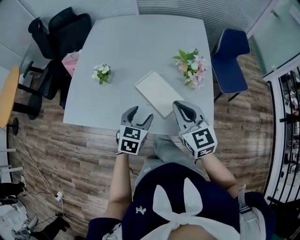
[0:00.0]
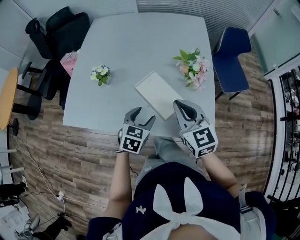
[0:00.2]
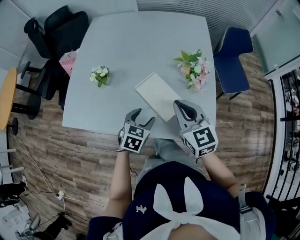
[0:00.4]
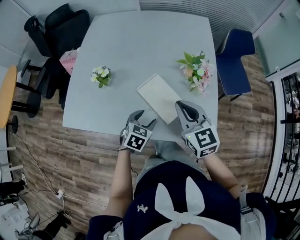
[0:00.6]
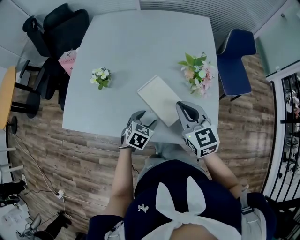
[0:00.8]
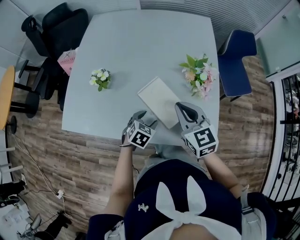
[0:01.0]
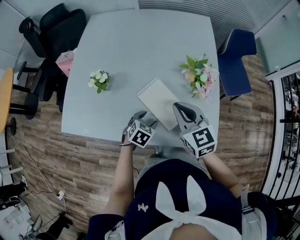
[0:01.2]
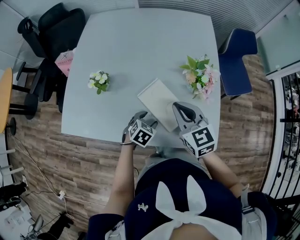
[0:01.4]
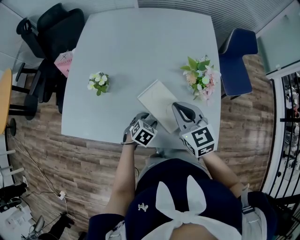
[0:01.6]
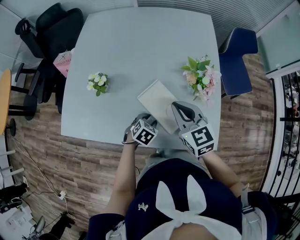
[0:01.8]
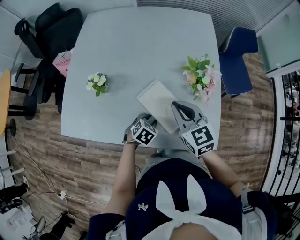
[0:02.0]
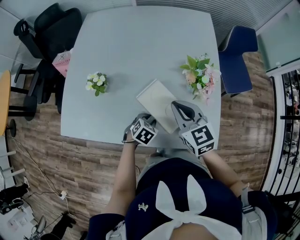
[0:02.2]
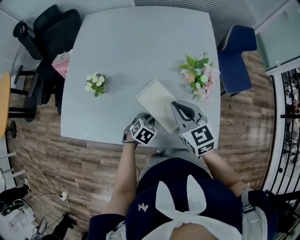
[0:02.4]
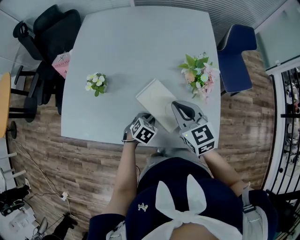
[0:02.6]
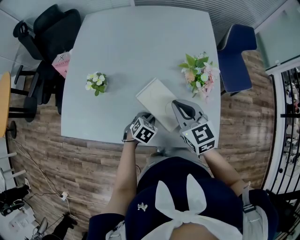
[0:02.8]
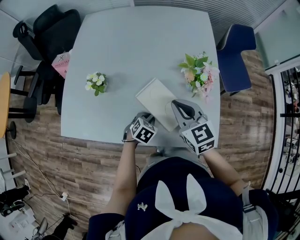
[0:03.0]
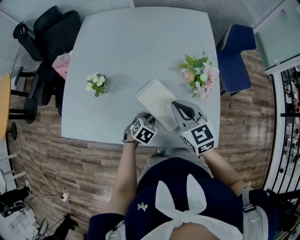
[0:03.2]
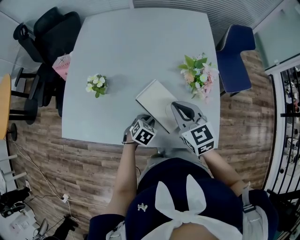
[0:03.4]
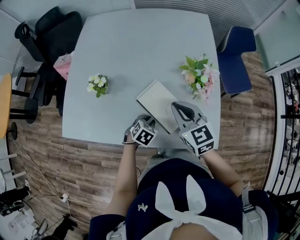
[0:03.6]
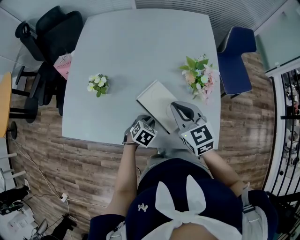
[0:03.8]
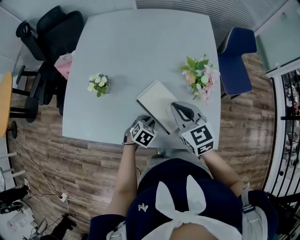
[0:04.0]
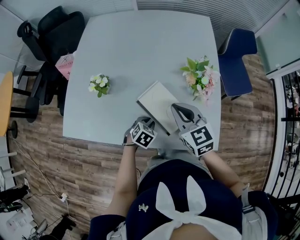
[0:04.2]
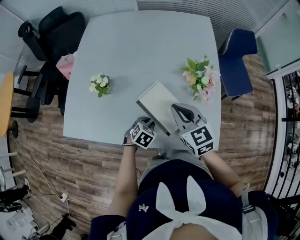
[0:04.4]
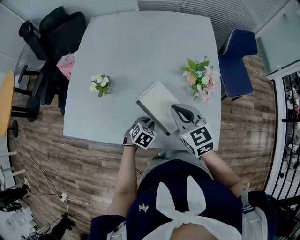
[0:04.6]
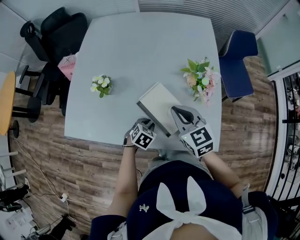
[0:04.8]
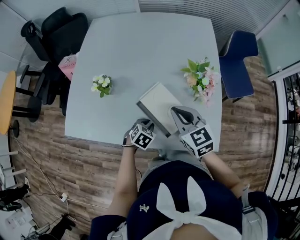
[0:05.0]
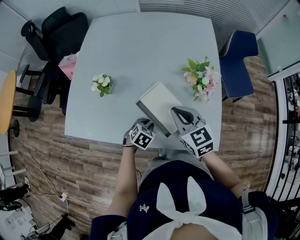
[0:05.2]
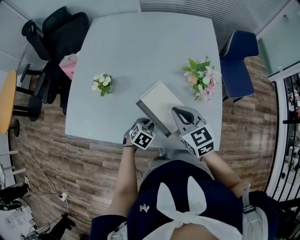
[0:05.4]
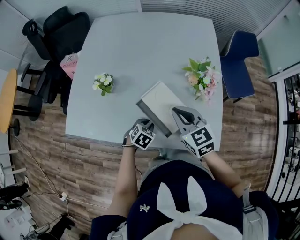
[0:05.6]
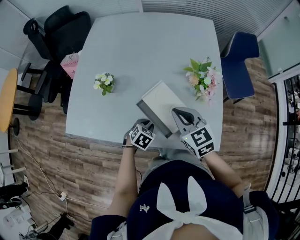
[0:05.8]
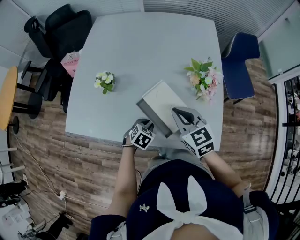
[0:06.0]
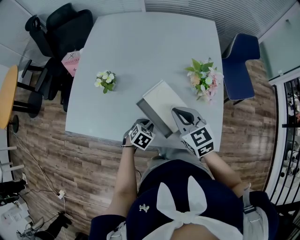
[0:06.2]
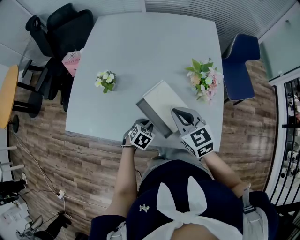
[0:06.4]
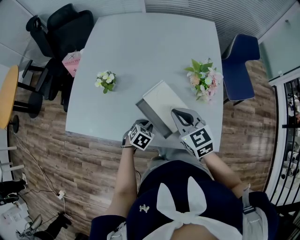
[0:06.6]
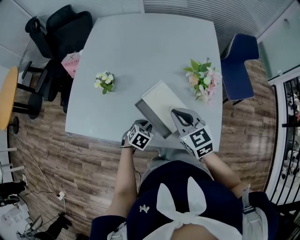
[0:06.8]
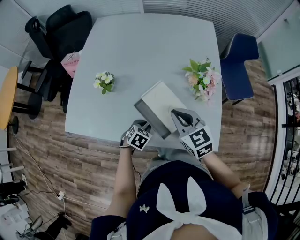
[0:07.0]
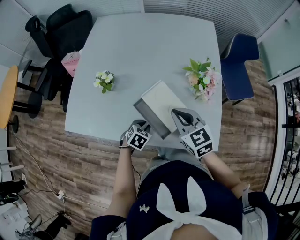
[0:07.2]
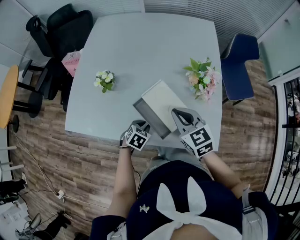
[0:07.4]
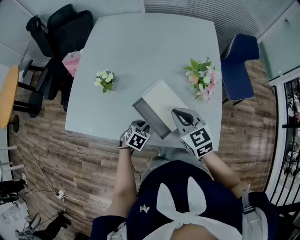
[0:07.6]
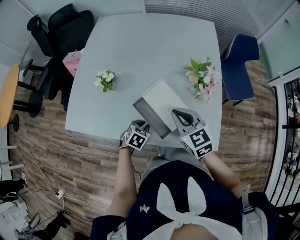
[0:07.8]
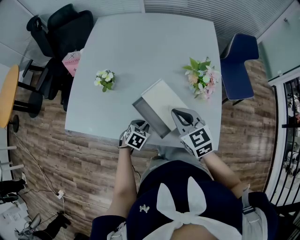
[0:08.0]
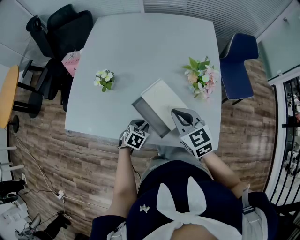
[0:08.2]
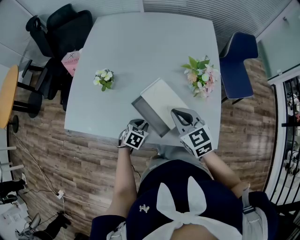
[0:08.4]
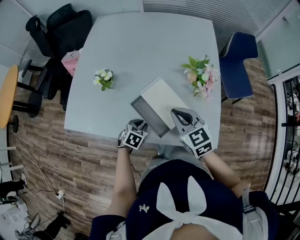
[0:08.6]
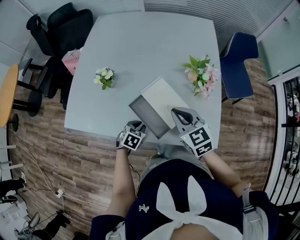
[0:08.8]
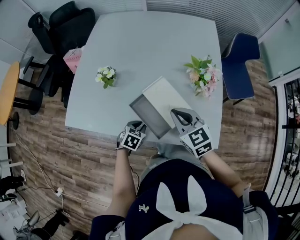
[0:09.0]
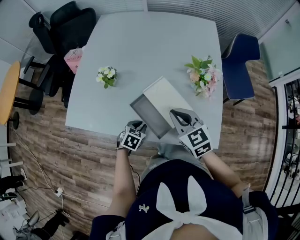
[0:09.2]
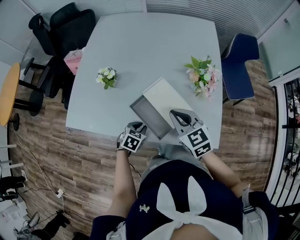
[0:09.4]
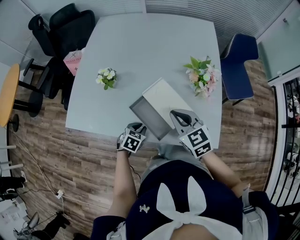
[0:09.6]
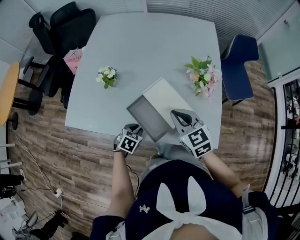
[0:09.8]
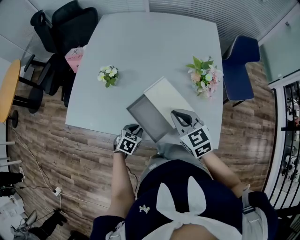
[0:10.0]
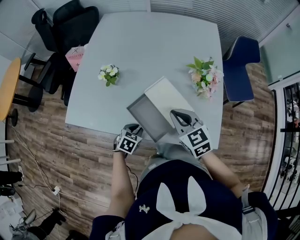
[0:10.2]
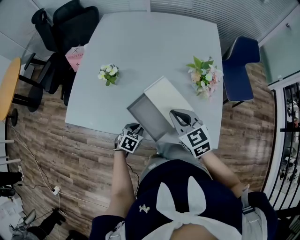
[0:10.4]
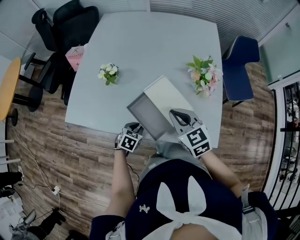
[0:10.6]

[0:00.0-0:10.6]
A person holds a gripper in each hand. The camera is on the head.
0:00.0 to 0:01.6: The right gripper is displaced forward and downward by about 10 cm; the left gripper is displaced downward and forward by approximately 15 cm, and rotates about 30 degrees.
0:01.6 to 0:03.0: The left gripper closes.
0:03.0 to 0:06.0: There are only small adjustments of the grippers.
0:06.0 to 0:09.0: The grippers move only a little.
0:09.0 to 0:10.6: The grippers move only a little.

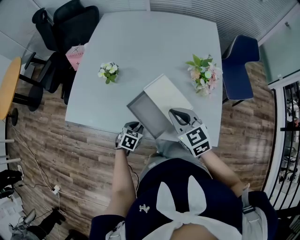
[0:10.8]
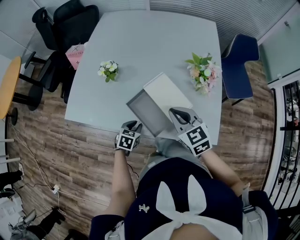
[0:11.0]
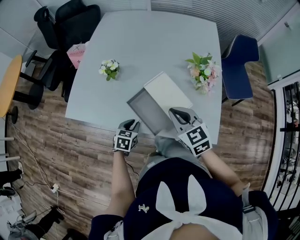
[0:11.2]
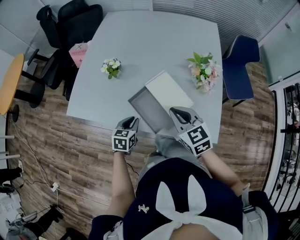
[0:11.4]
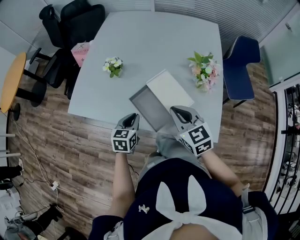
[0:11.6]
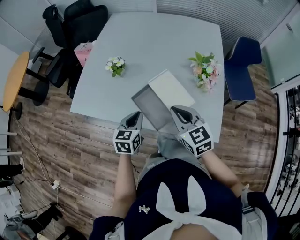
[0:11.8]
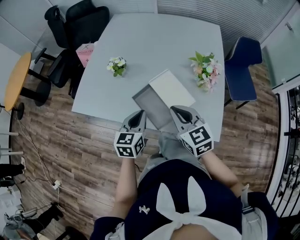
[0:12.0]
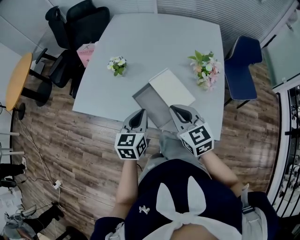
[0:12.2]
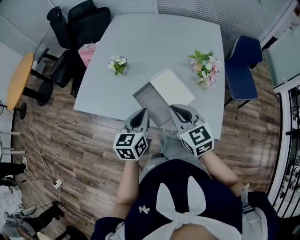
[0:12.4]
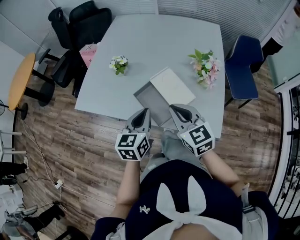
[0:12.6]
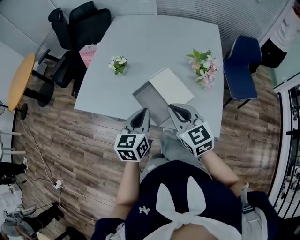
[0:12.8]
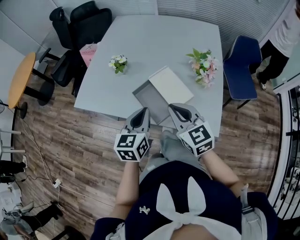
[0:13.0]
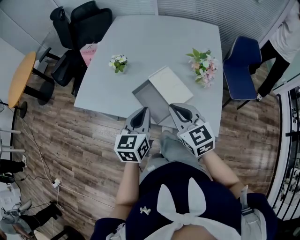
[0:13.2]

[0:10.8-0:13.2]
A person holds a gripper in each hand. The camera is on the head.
0:10.8 to 0:12.0: The right gripper changes place by roughly 5 cm. Meanwhile the left gripper travels upward by some 20 cm, and points its fingers about 30 degrees further upward.
0:12.0 to 0:13.2: The left gripper is displaced upward and backward by about 10 cm. The right gripper moves about 5 cm.

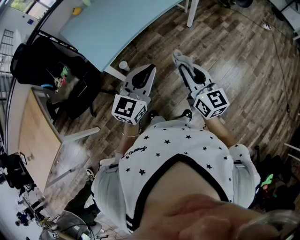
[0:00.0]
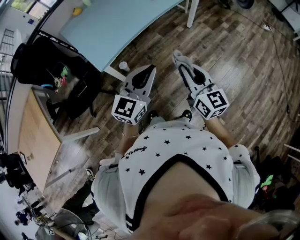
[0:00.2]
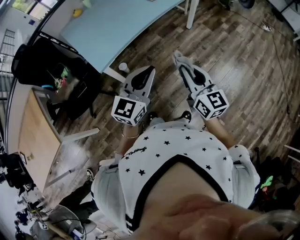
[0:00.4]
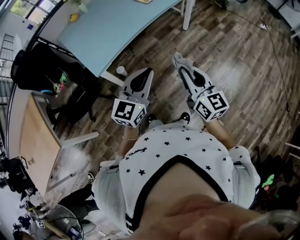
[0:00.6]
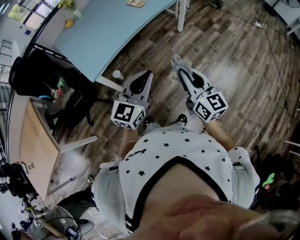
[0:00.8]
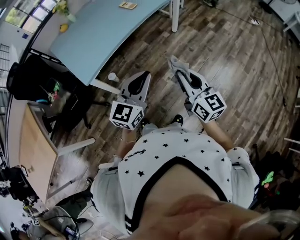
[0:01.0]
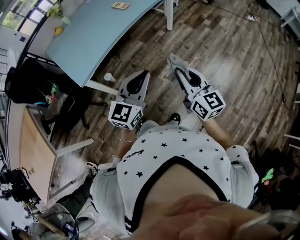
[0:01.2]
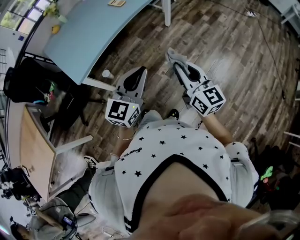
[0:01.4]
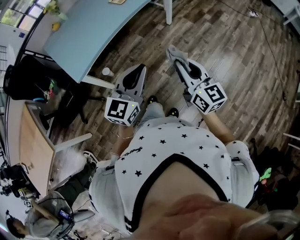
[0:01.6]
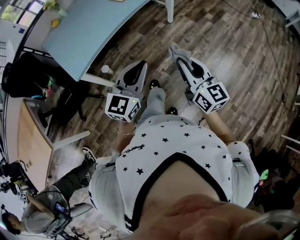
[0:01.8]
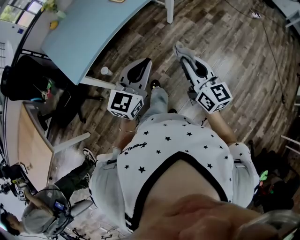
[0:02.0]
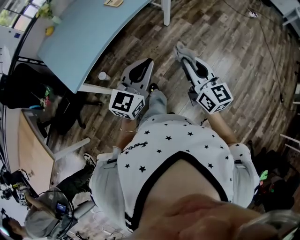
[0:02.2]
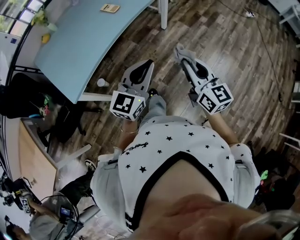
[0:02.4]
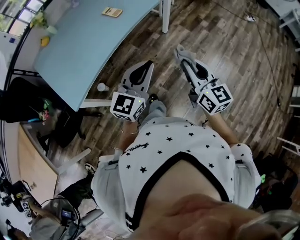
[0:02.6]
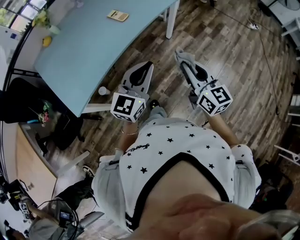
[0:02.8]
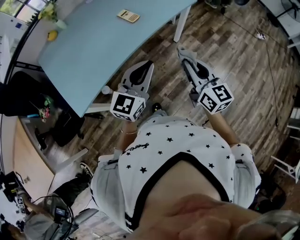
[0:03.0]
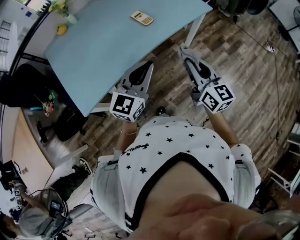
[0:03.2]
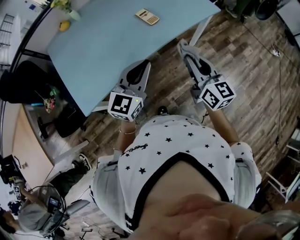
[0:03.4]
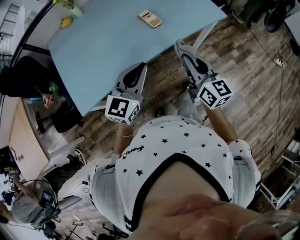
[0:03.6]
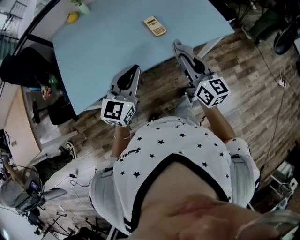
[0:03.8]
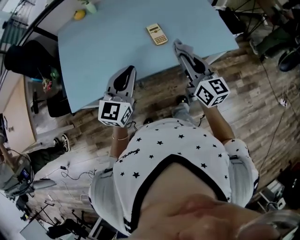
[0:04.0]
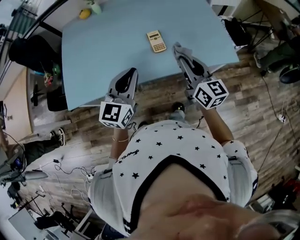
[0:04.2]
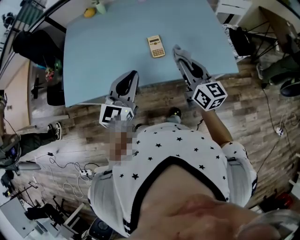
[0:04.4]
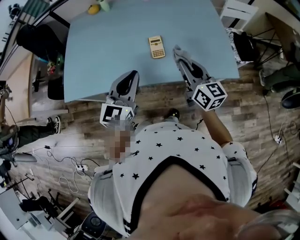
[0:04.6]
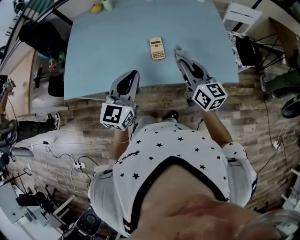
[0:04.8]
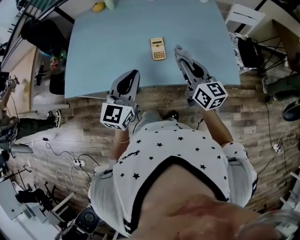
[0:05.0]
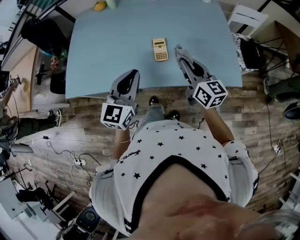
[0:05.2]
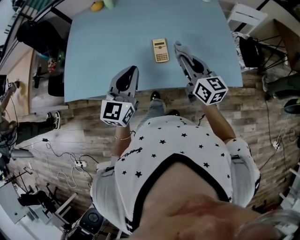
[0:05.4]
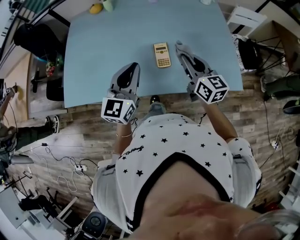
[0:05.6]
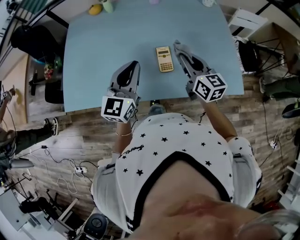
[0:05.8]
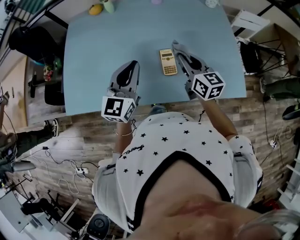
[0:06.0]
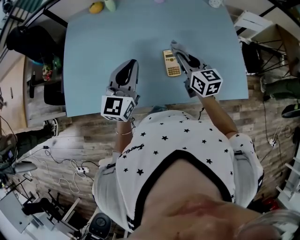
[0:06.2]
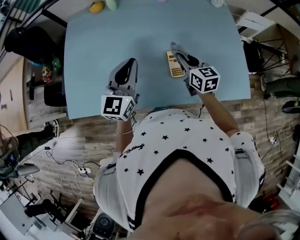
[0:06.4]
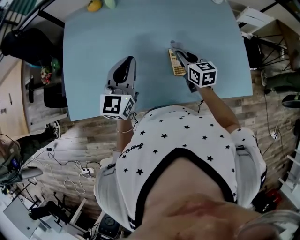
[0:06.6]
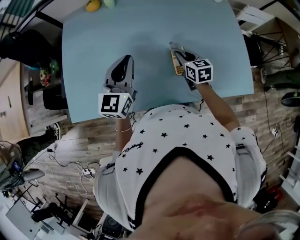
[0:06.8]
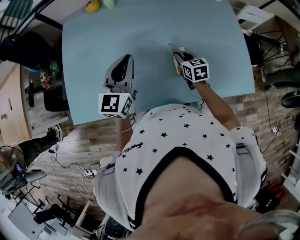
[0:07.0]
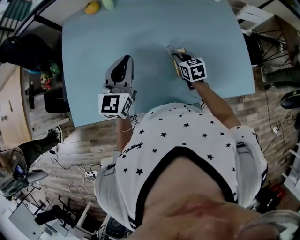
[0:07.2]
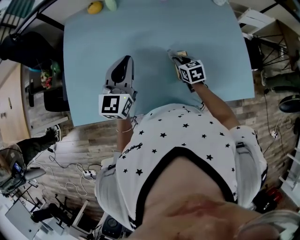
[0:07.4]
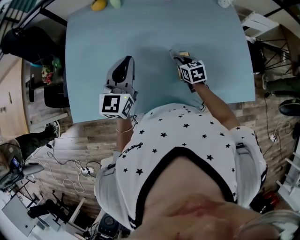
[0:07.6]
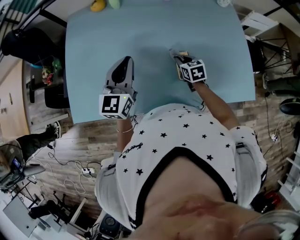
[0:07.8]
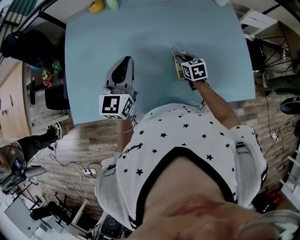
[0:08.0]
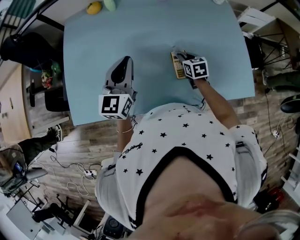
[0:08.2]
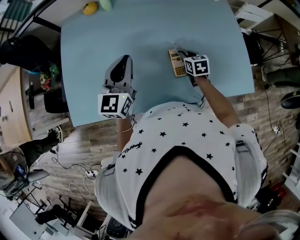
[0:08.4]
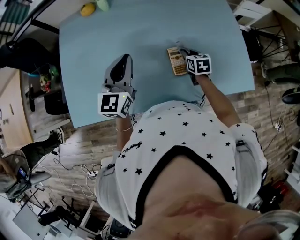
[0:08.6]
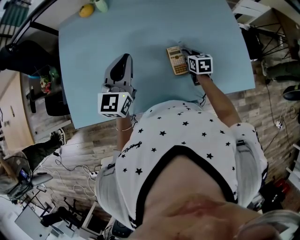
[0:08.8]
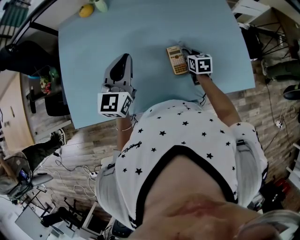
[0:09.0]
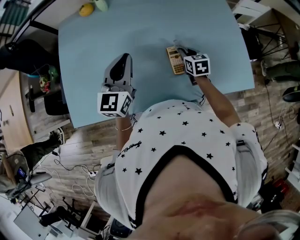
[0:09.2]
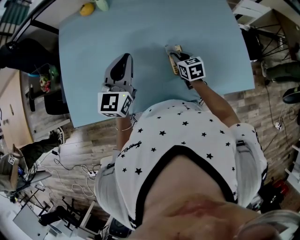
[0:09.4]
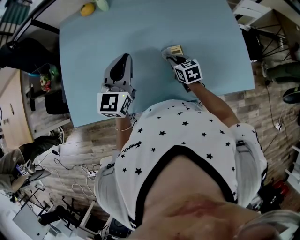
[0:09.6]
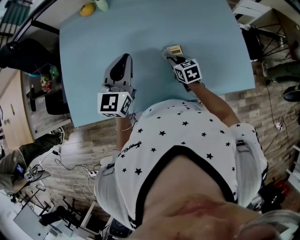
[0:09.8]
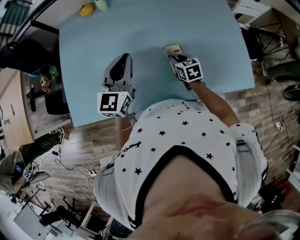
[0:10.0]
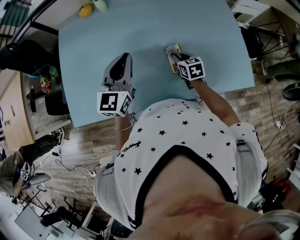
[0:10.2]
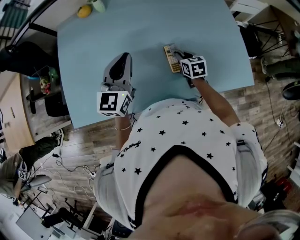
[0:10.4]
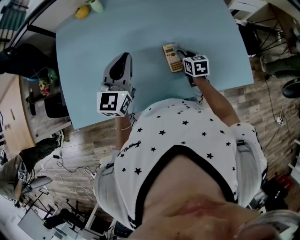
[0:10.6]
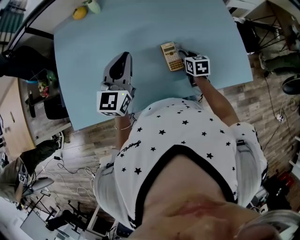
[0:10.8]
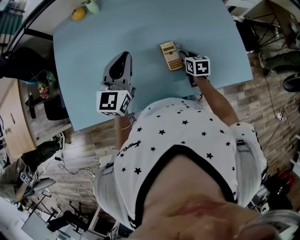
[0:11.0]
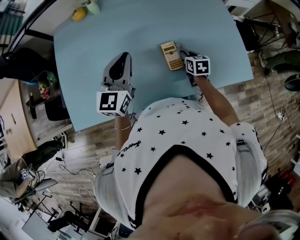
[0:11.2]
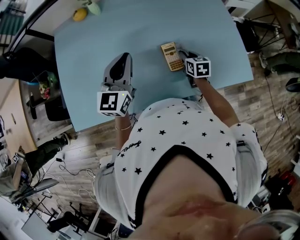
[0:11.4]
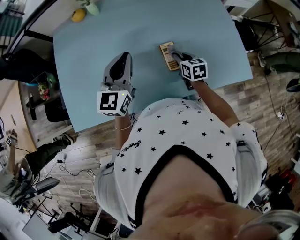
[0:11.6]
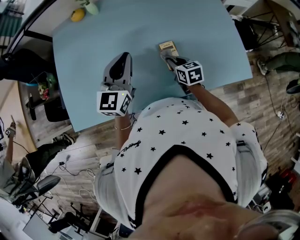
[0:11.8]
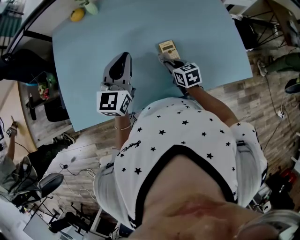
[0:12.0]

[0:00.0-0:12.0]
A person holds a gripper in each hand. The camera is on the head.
0:00.0 to 0:01.6: The two grippers go roughly 15 cm to the right.
0:01.6 to 0:03.0: Both grippers travel together forward, roughly 30 cm.
0:03.0 to 0:04.4: The left gripper changes place by about 20 cm, and changes its angle by roughly 40 degrees, while the right gripper ends up some 35 cm from where it was, and swivels about 40 degrees.
0:04.4 to 0:06.0: The two grippers go about 15 cm forward.
0:06.0 to 0:07.6: The right gripper goes some 20 cm downward, and tips its fingers downward by approximately 30 degrees; the left gripper heads to the left and forward, covering some 10 cm.
0:07.6 to 0:09.0: The right gripper shifts some 10 cm to the right.
0:10.4 to 0:12.0: The right gripper is displaced backward by roughly 5 cm.
